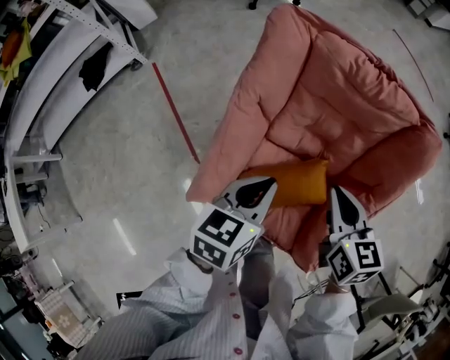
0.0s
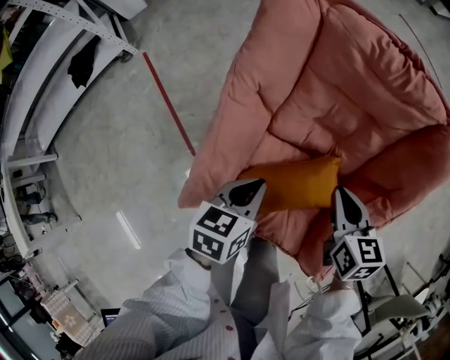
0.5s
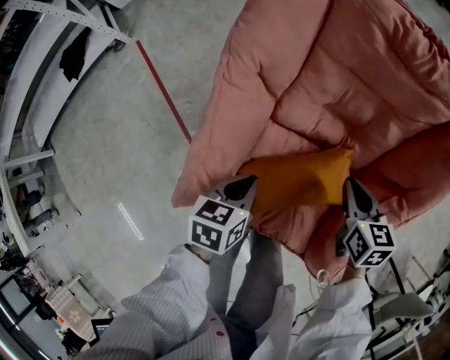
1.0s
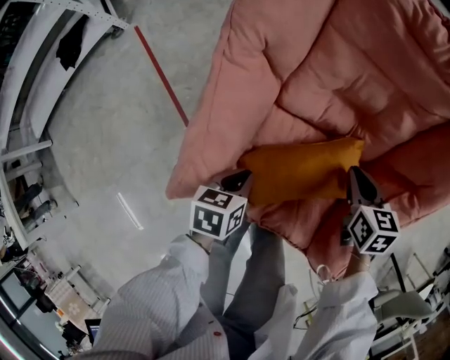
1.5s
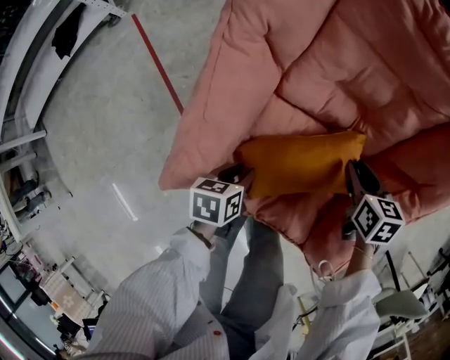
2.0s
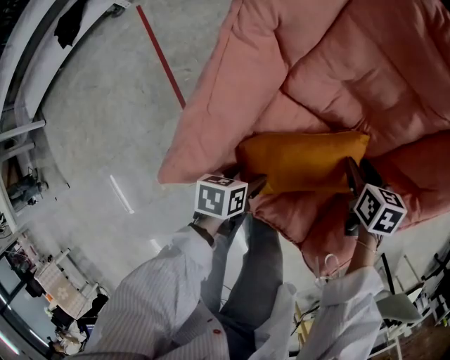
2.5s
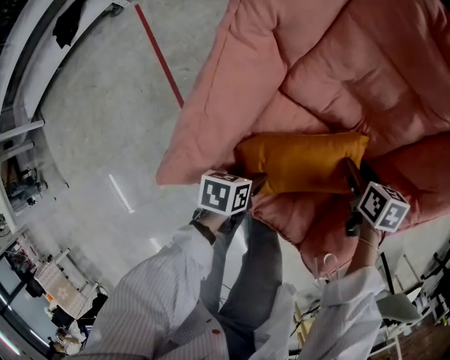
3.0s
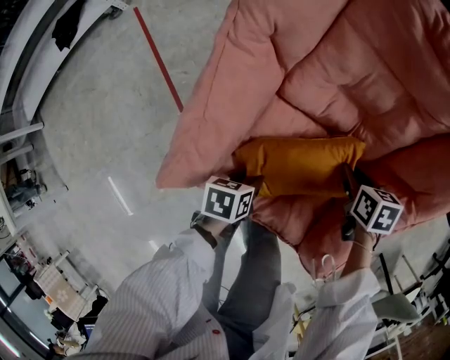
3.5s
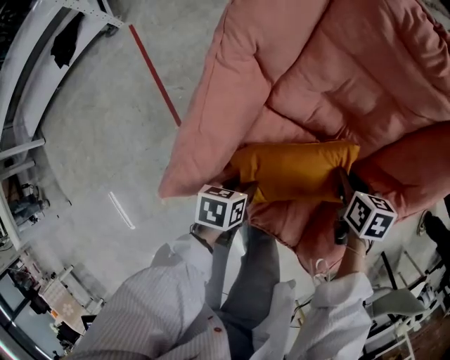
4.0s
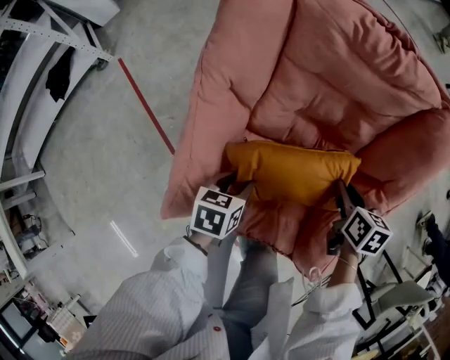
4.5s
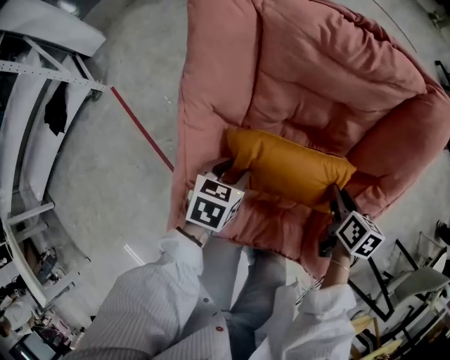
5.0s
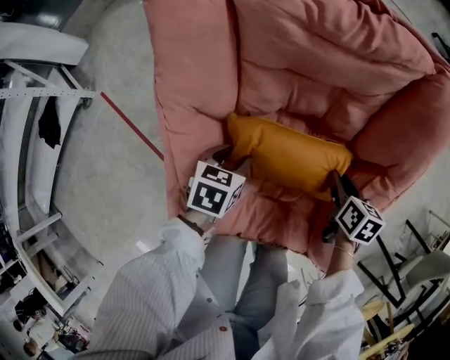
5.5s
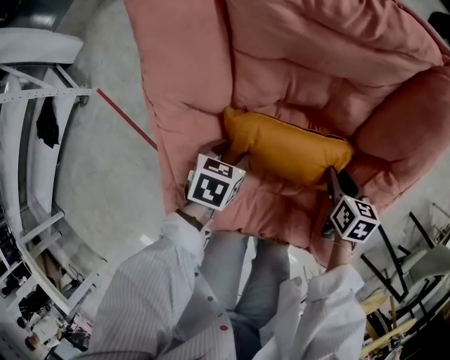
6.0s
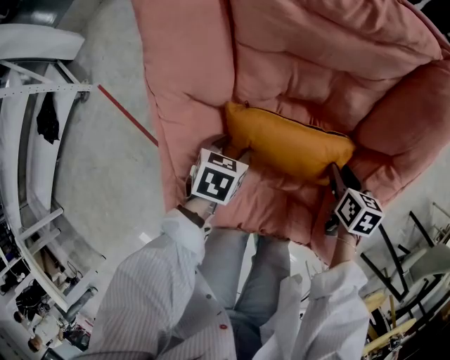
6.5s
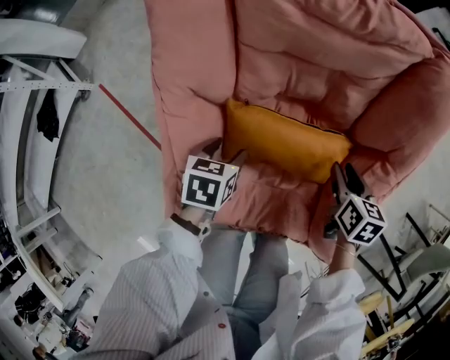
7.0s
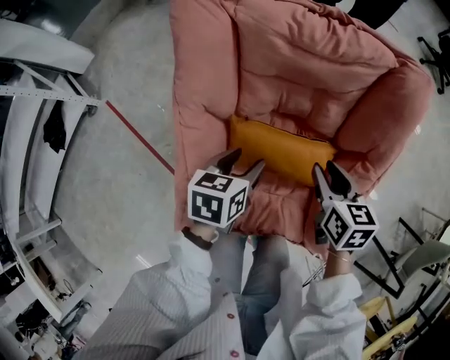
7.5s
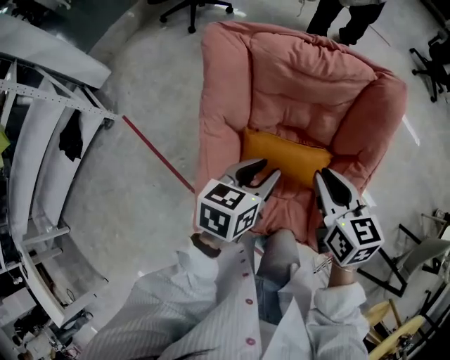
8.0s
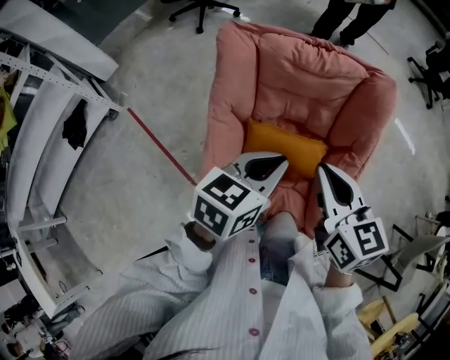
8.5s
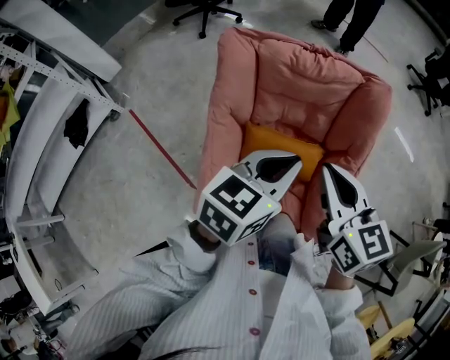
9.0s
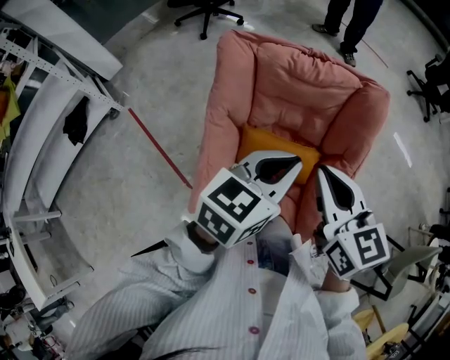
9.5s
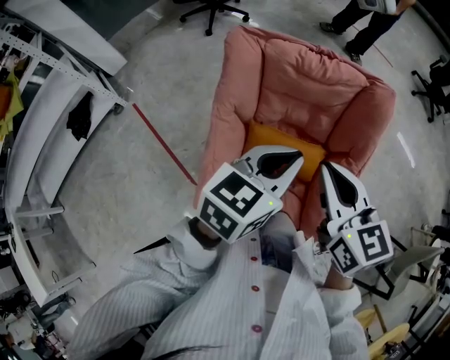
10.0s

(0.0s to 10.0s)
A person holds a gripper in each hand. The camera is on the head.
0.0s - 2.0s: Both grippers travel together downward, about 30 cm. The left gripper swivels approximately 30 degrees. Meanwhile the right gripper turns by about 20 degrees.
2.0s - 4.0s: The left gripper opens, then closes again, while the right gripper opens, then closes again.
4.0s - 6.0s: The right gripper shifts approximately 5 cm to the right, and swivels about 30 degrees; the left gripper heads forward, covering roughly 20 cm, and changes its angle by about 40 degrees.
6.0s - 8.0s: The right gripper moves upward and to the left, approximately 35 cm, and rotates some 30 degrees. The left gripper heads upward, covering about 30 cm, and turns by approximately 30 degrees.
8.0s - 10.0s: The right gripper moves upward and backward, about 15 cm. The left gripper shifts about 15 cm upward, and closes.

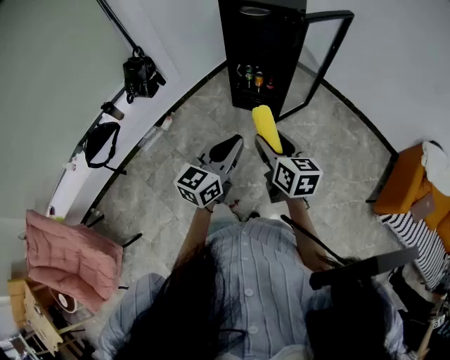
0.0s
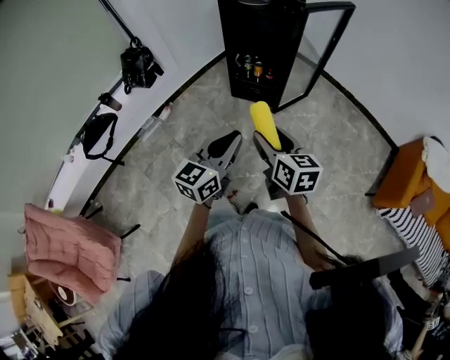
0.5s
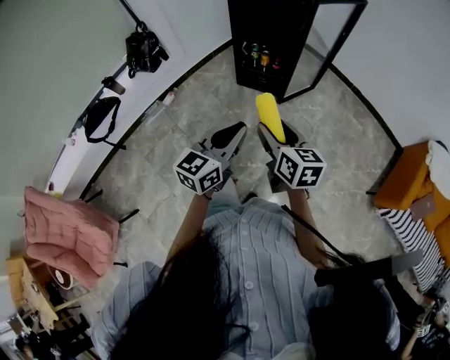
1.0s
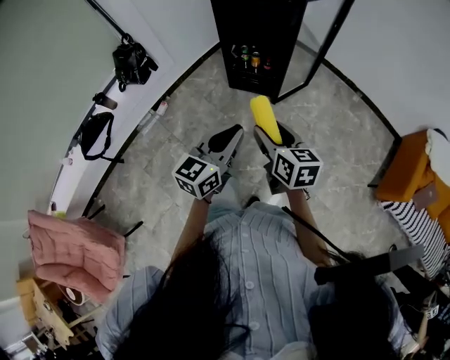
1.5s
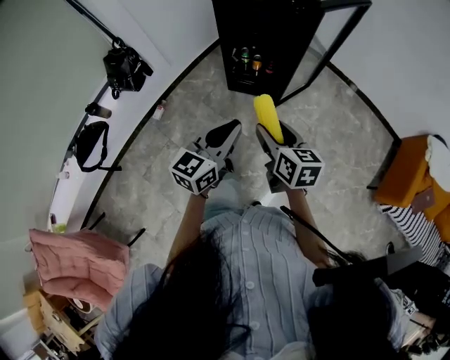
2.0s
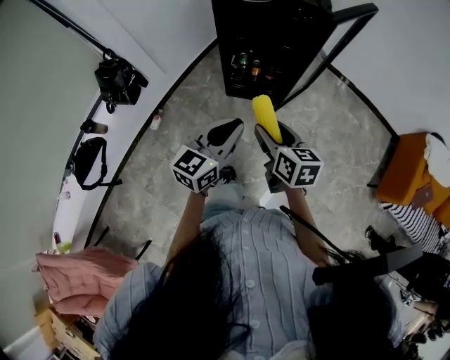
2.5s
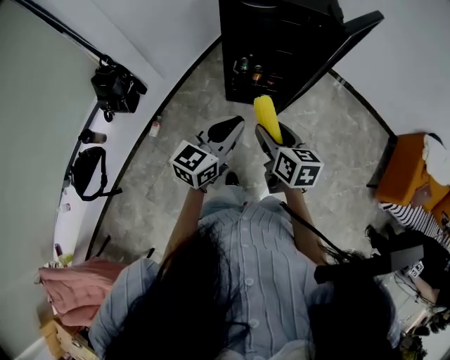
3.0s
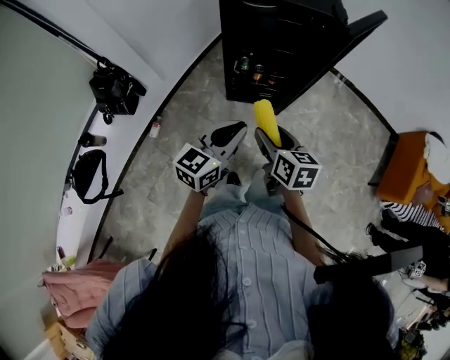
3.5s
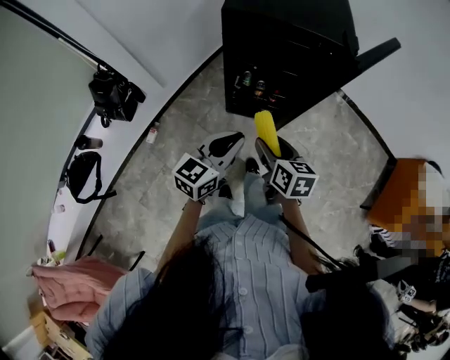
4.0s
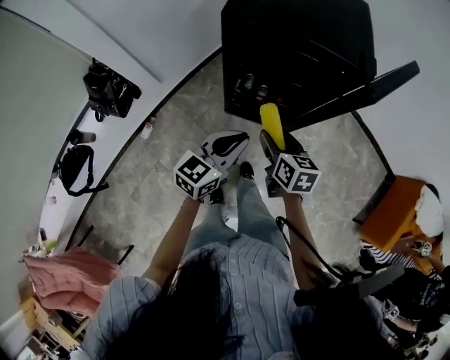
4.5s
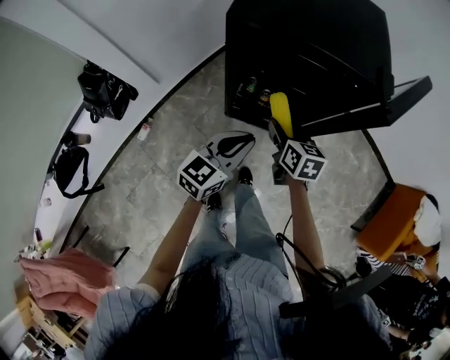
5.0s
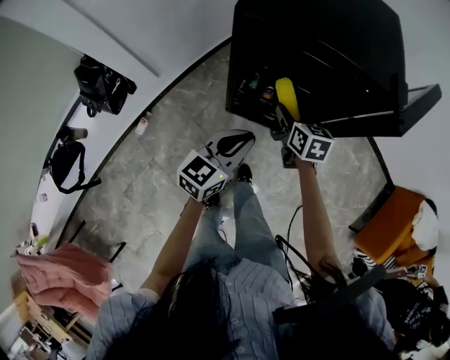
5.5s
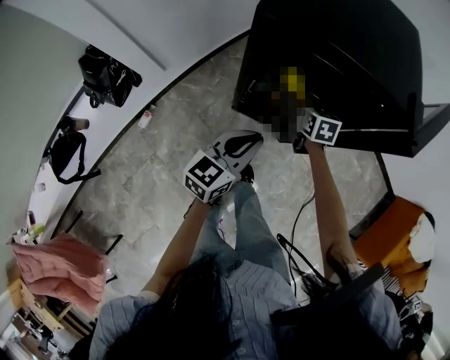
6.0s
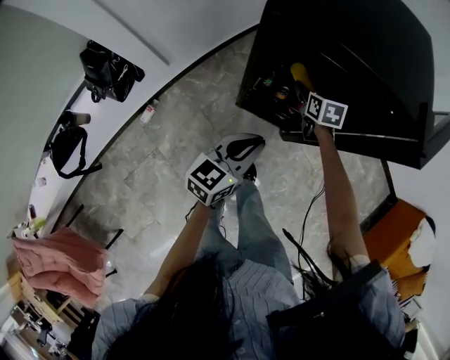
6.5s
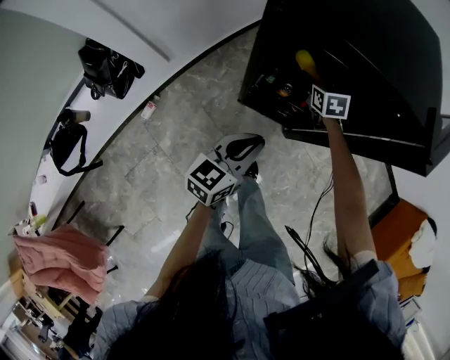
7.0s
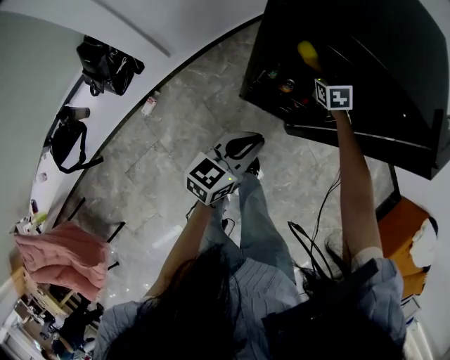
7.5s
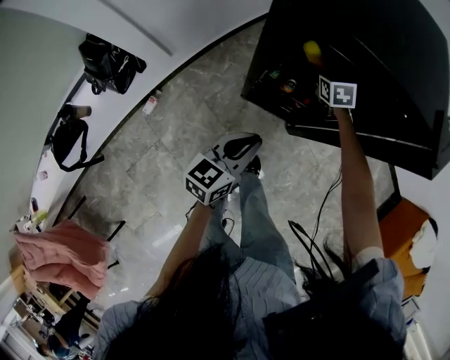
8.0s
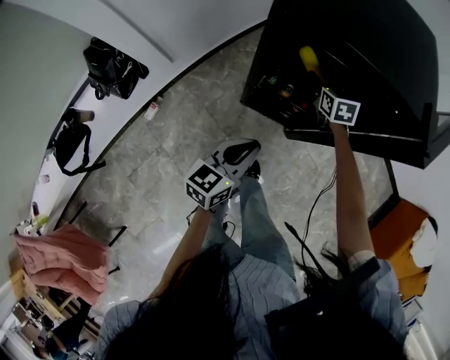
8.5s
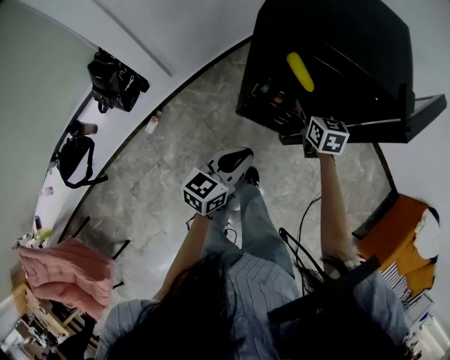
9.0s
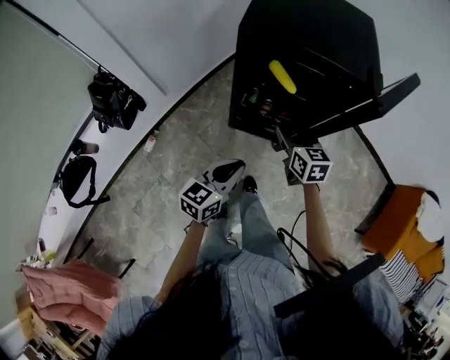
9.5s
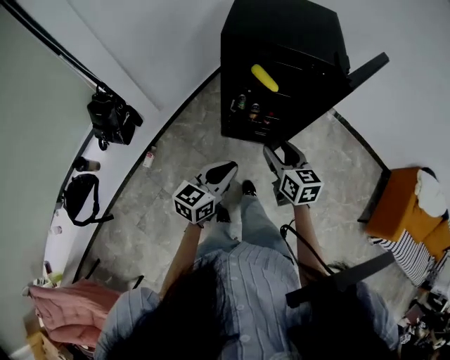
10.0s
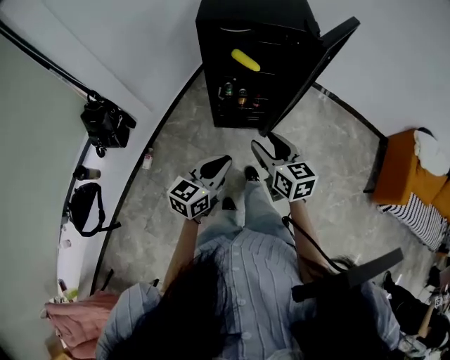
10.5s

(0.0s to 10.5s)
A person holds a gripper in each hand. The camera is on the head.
0.0s - 2.0s: Both grippers move forward, roughly 15 cm.
2.0s - 4.0s: Both grippers move forward and to the left, about 20 cm.
4.0s - 6.5s: The left gripper travels forward and downward by about 20 cm. The right gripper goes about 40 cm forward and downward, and changes its angle by approximately 20 degrees.
8.5s - 10.5s: The right gripper travels backward and upward by approximately 50 cm, and rotates about 20 degrees. Meanwhile the left gripper shifts about 25 cm backward and upward.

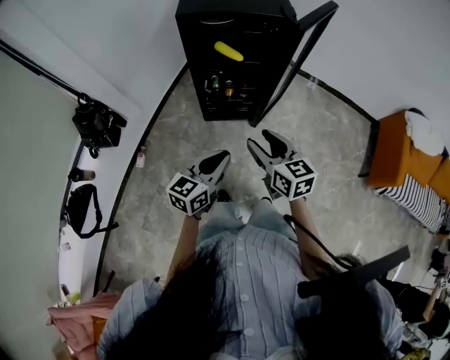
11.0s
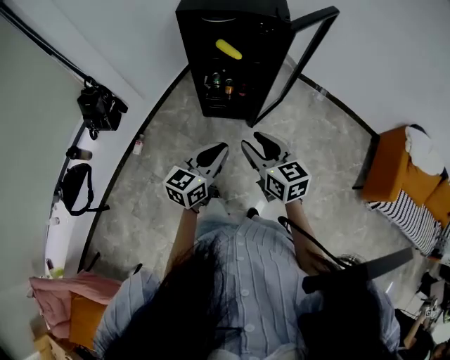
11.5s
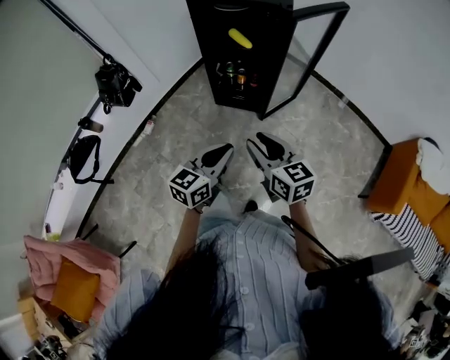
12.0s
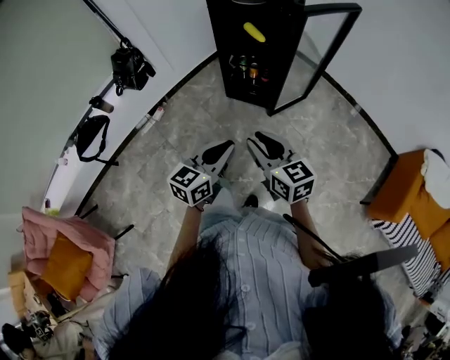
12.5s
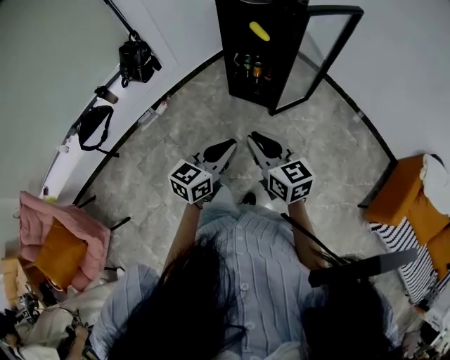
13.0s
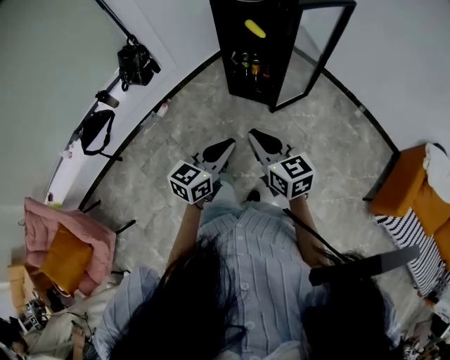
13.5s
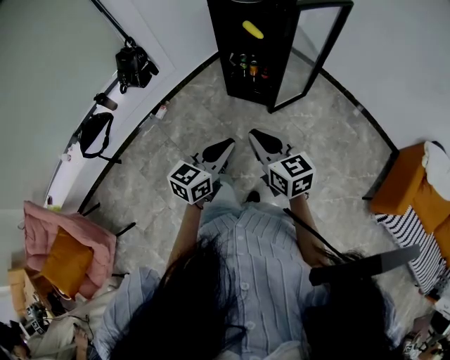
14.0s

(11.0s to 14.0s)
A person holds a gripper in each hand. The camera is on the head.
11.0s - 12.5s: The grippers both shift backward and to the right by roughly 20 cm. The right gripper swivels roughly 30 degrees, and closes up.
12.5s - 14.0s: Both grippers move backward, some 5 cm. The right gripper closes.

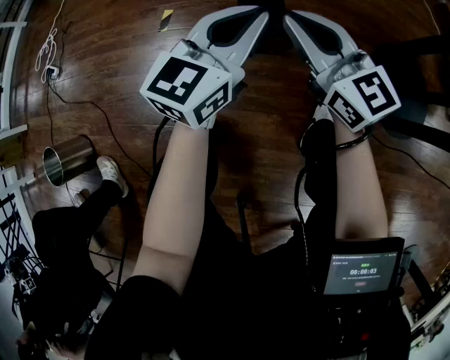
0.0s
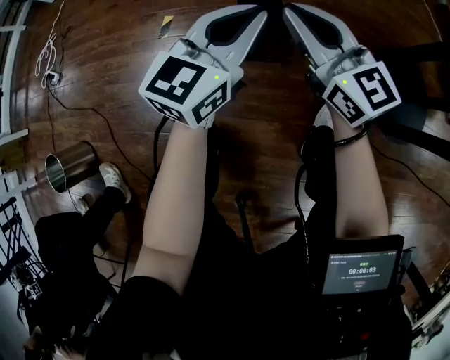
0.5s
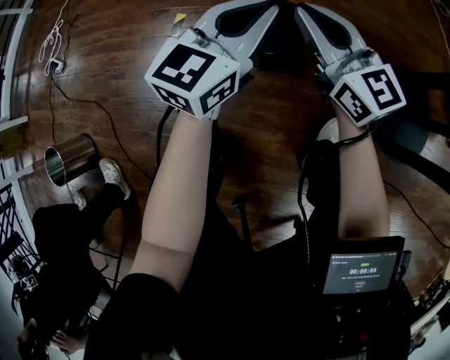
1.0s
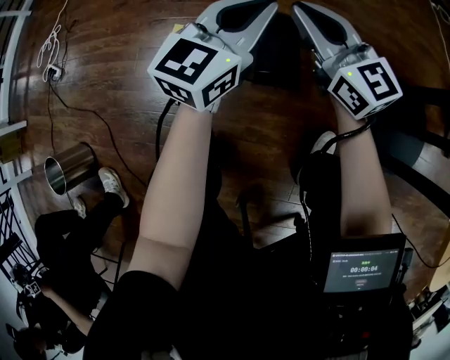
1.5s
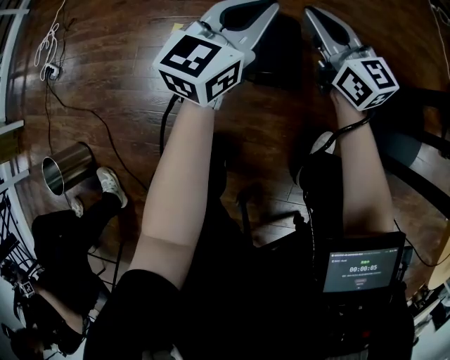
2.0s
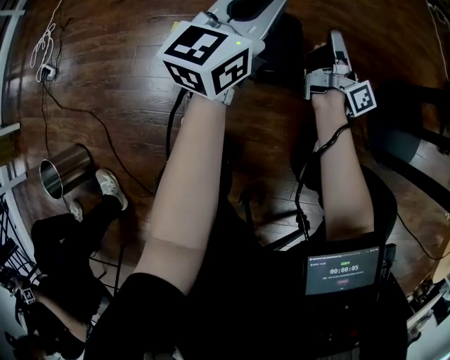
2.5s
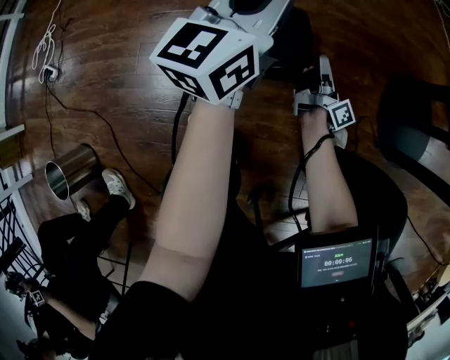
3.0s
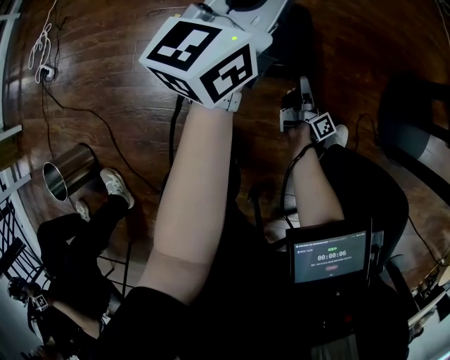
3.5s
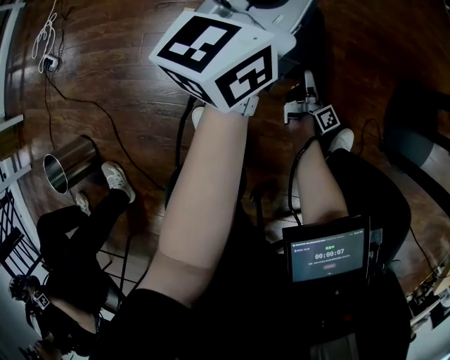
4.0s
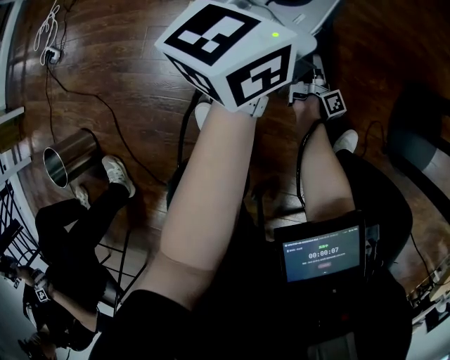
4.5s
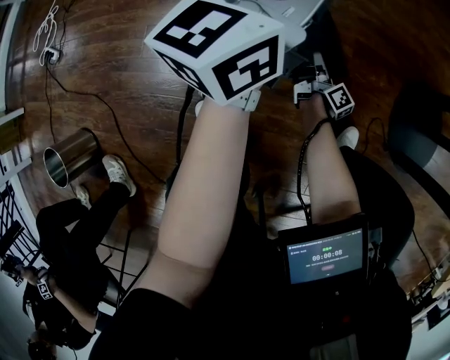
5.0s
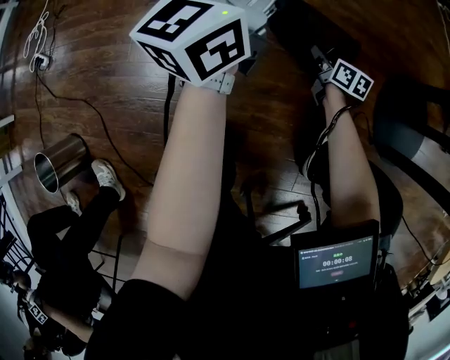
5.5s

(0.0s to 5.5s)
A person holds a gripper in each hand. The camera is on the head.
0.0s - 2.0s: Both grippers travel together forward, roughly 20 cm.
2.0s - 3.5s: The right gripper travels downward by approximately 35 cm, rotates around the line of its fingers by roughly 70 degrees, clockwise from behind, and opens.
3.5s - 5.5s: The right gripper heads forward, covering some 10 cm, points its fingers approximately 30 degrees further downward, and closes its fingers.
